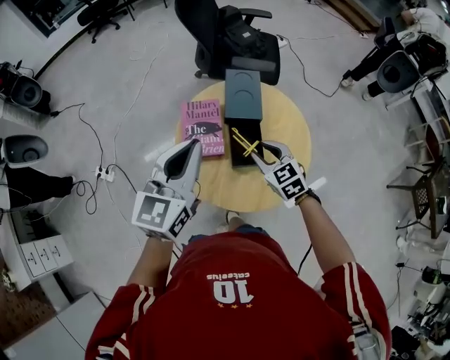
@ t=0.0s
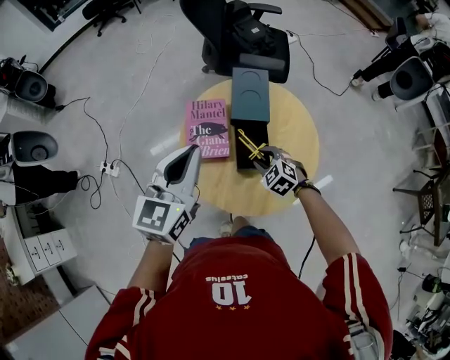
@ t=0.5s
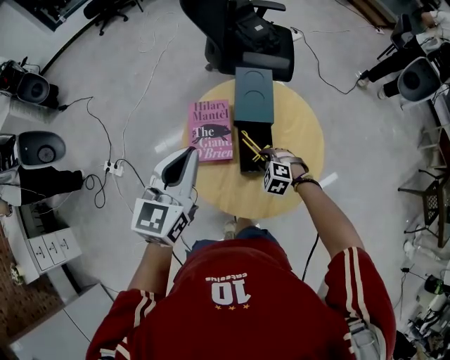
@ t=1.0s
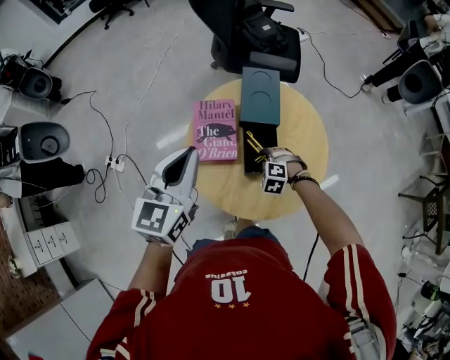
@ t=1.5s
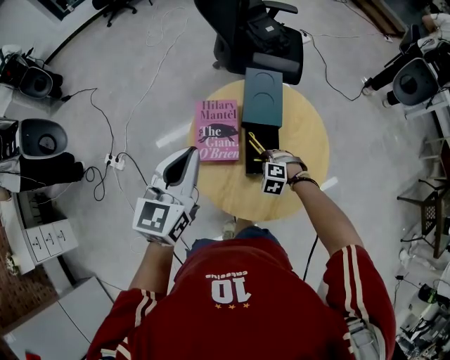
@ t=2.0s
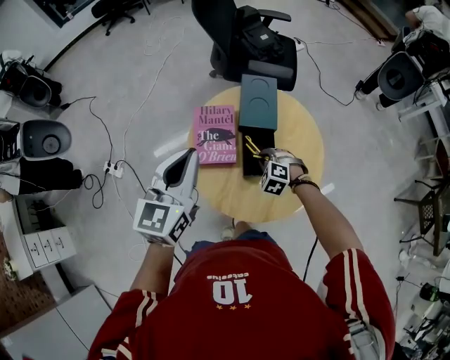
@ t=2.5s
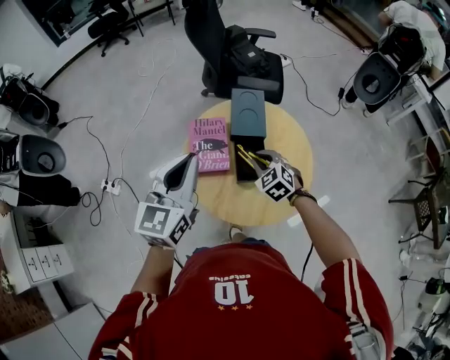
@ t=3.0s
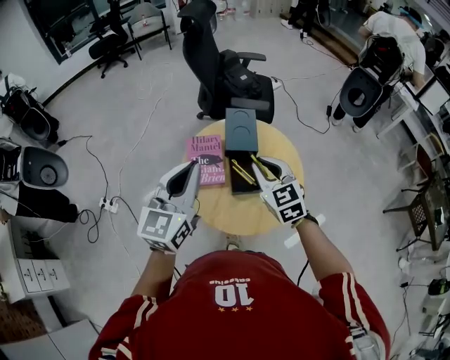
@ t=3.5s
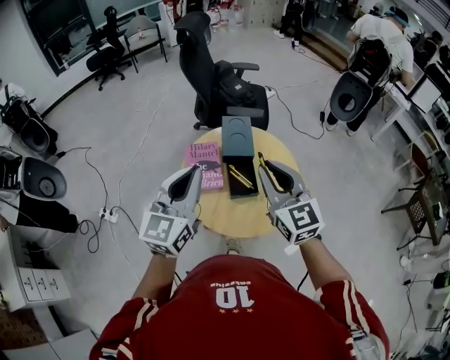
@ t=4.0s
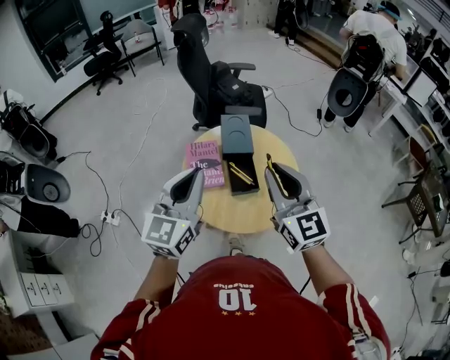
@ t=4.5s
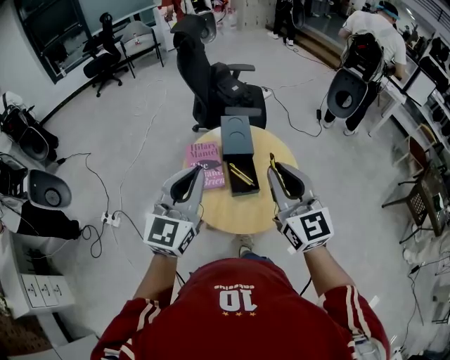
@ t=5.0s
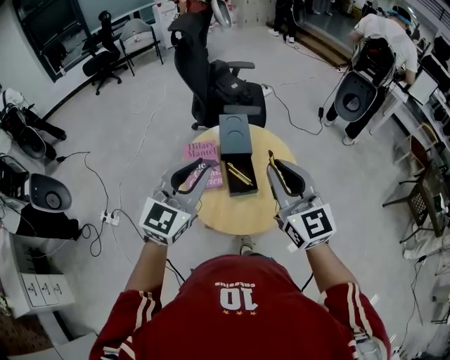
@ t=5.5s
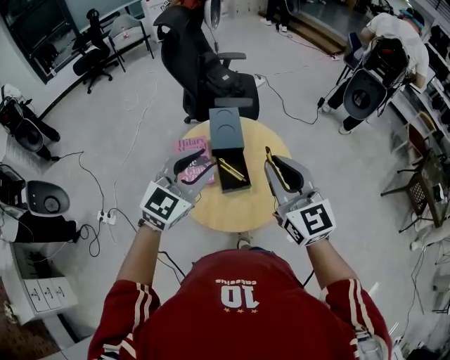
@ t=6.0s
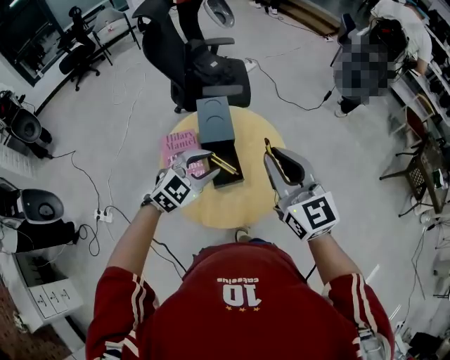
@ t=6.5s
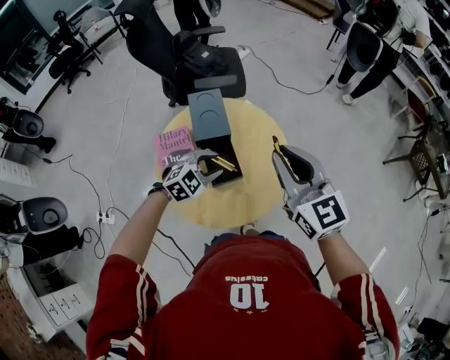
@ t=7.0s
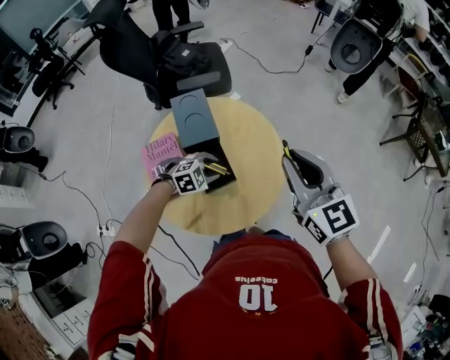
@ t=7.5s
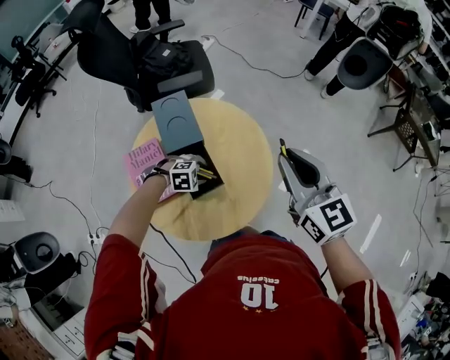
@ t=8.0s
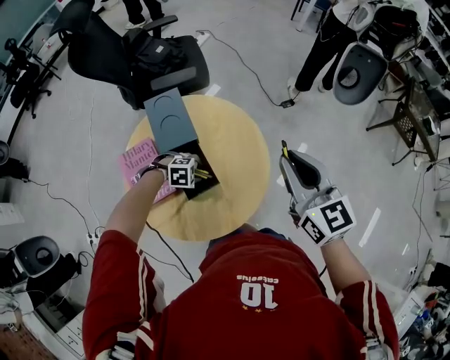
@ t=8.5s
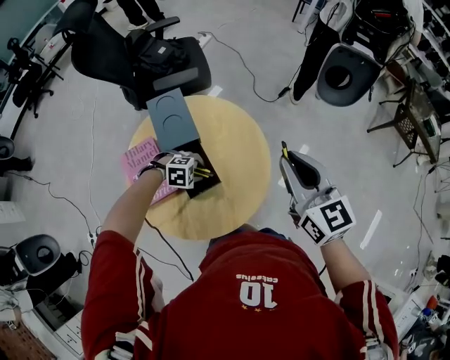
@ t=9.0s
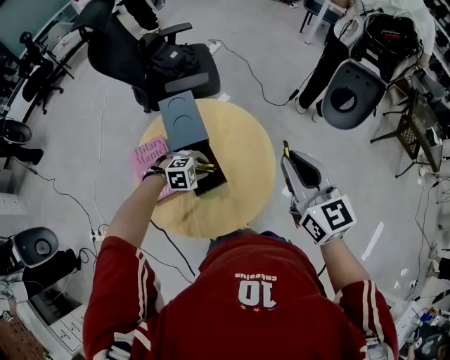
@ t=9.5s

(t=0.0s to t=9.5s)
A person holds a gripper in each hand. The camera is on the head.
t=0.0s - t=2.0s: The right gripper shifts approximately 20 cm downward, and tilts its fingers roughly 30 degrees downward. Meanwhile the left gripper moves about 5 cm.
t=2.0s - t=4.0s: The left gripper is displaced upward and backward by about 15 cm. The right gripper is displaced upward by some 40 cm, and angles its fingers upward, by about 70 degrees.
t=4.0s - t=5.5s: The right gripper ends up some 5 cm from where it was.
t=5.5s - t=7.5s: The left gripper goes some 40 cm downward, and tilts its fingers about 50 degrees downward; the right gripper moves roughly 20 cm.

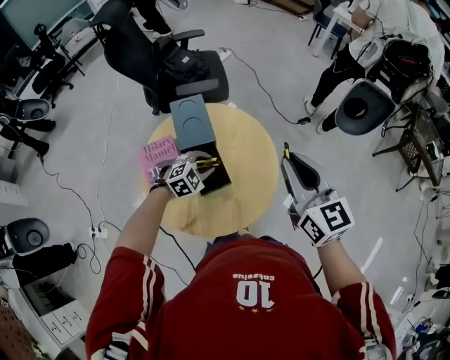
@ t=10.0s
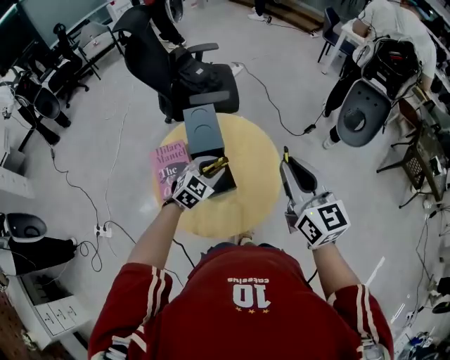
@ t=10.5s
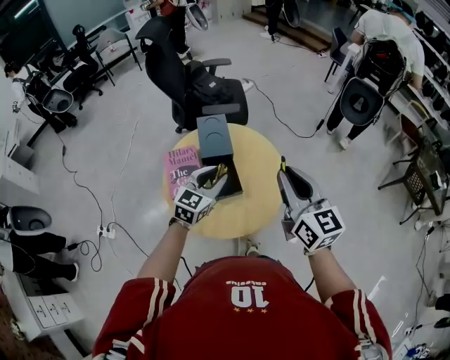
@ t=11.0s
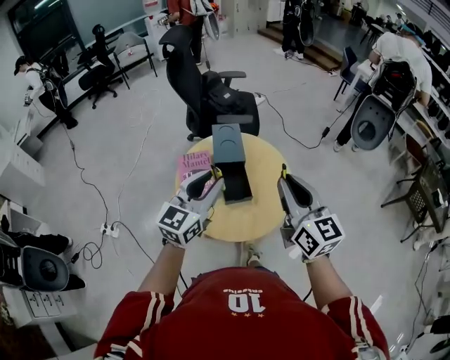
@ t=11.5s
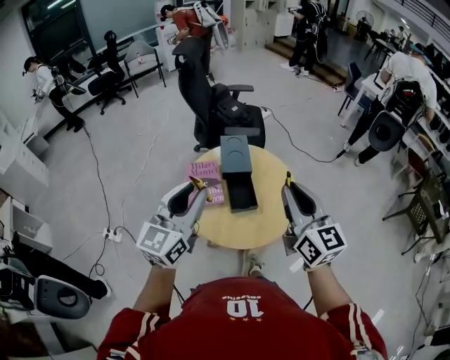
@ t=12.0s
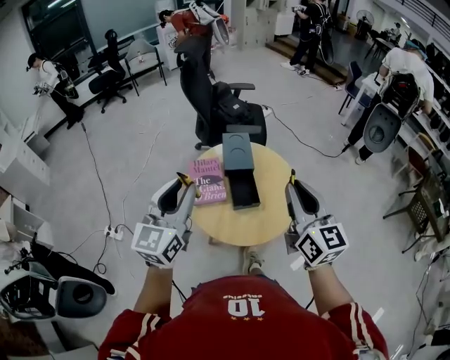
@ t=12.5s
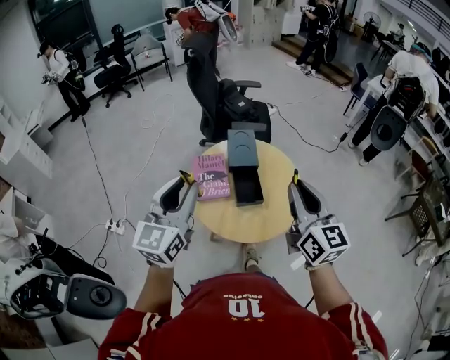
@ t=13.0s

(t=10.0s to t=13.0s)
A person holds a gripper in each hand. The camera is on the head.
t=10.0s - t=11.5s: The left gripper shifts approximately 35 cm upward and backward, and tips its fingers upward by approximately 50 degrees. The right gripper travels backward, to the left and upward by some 15 cm.
t=11.5s - t=13.0s: The left gripper travels to the left, backward and upward by some 15 cm.

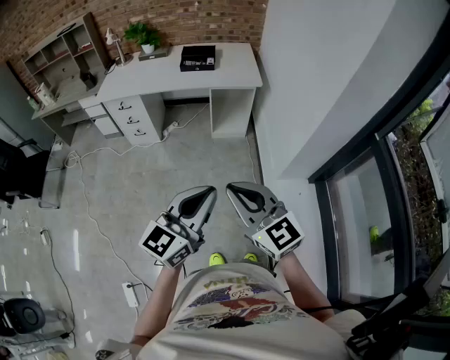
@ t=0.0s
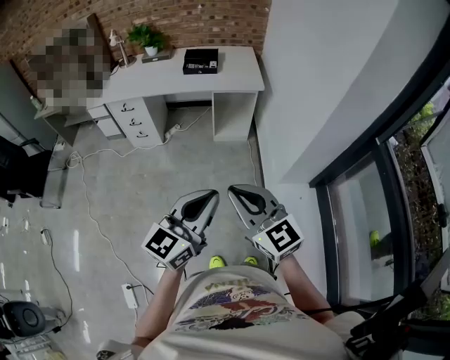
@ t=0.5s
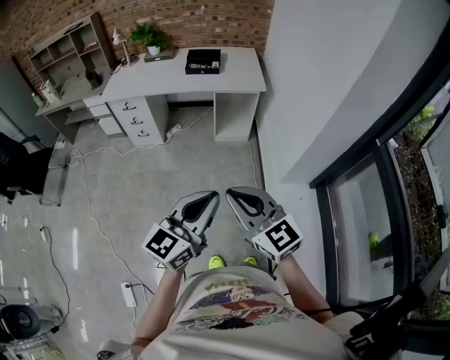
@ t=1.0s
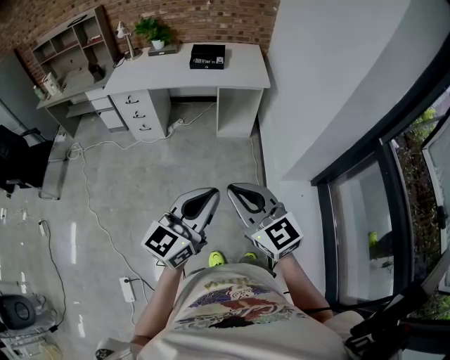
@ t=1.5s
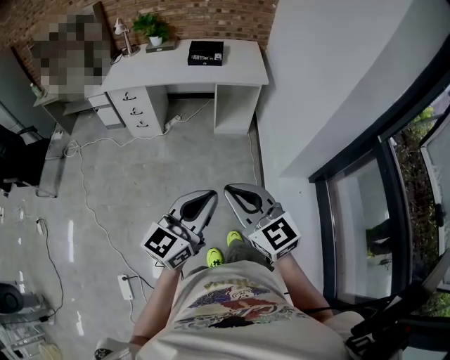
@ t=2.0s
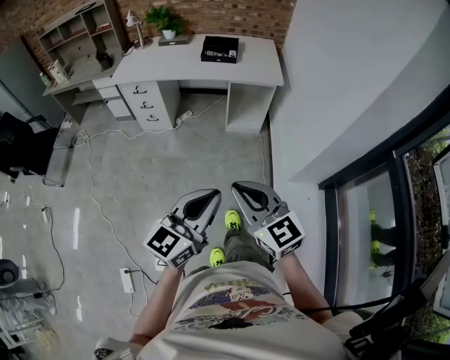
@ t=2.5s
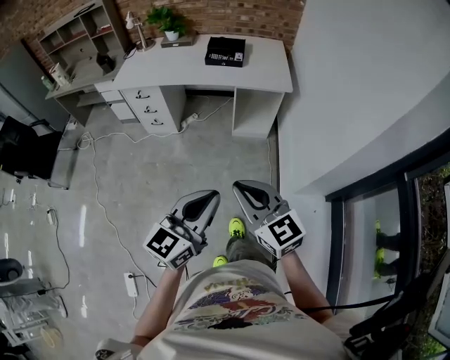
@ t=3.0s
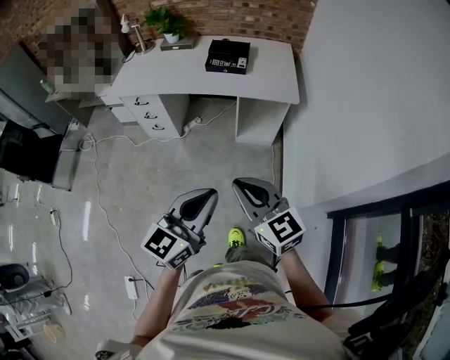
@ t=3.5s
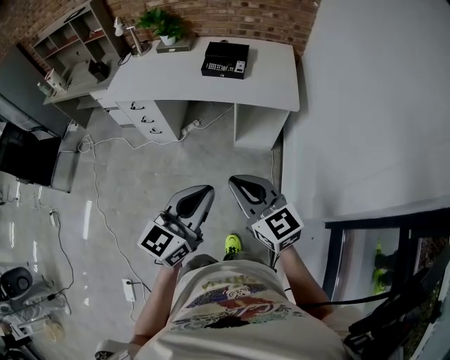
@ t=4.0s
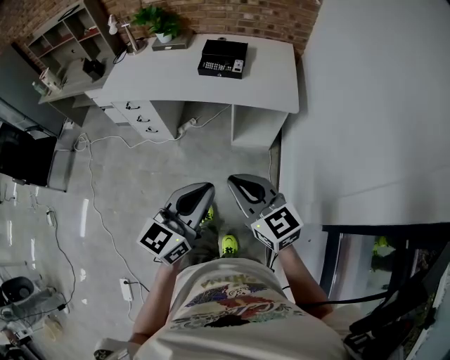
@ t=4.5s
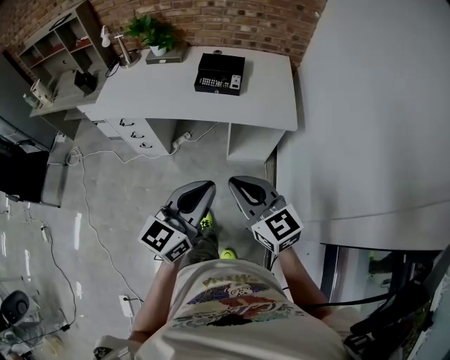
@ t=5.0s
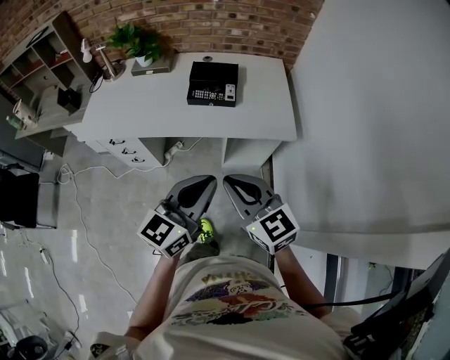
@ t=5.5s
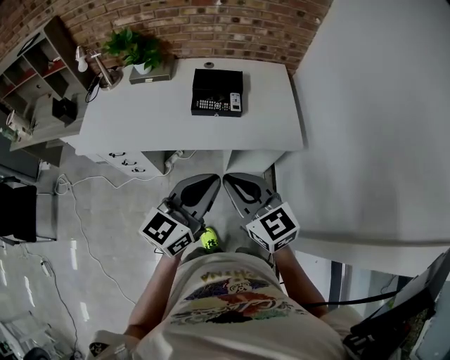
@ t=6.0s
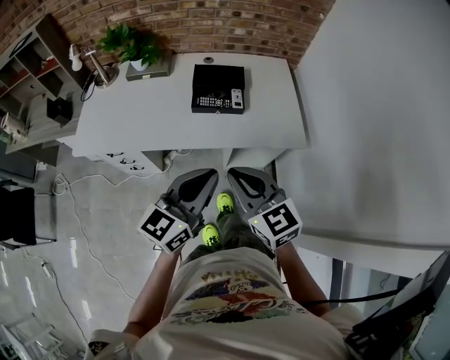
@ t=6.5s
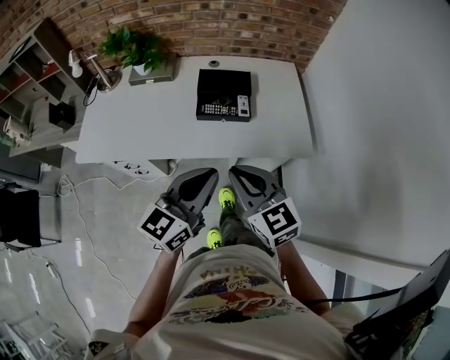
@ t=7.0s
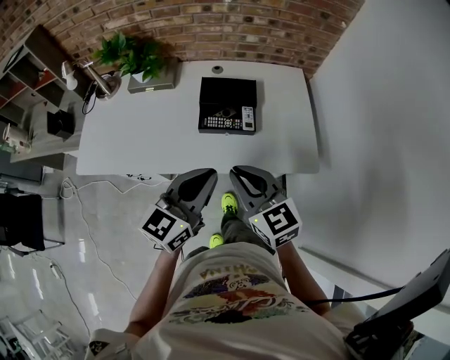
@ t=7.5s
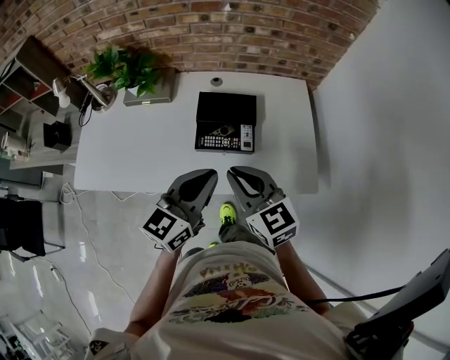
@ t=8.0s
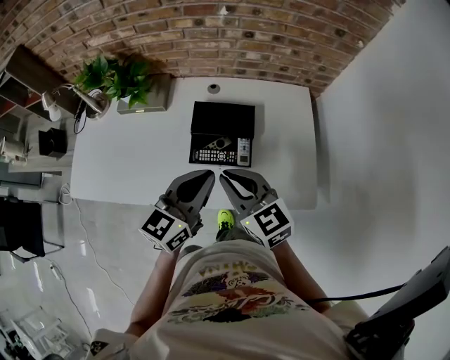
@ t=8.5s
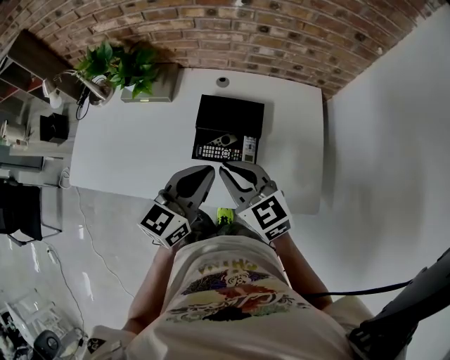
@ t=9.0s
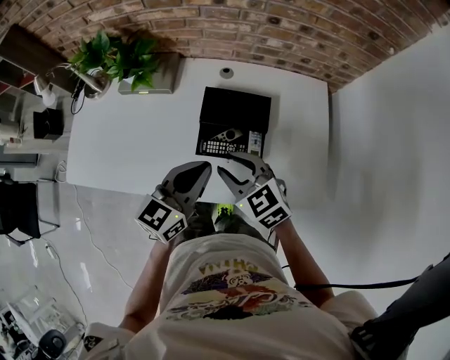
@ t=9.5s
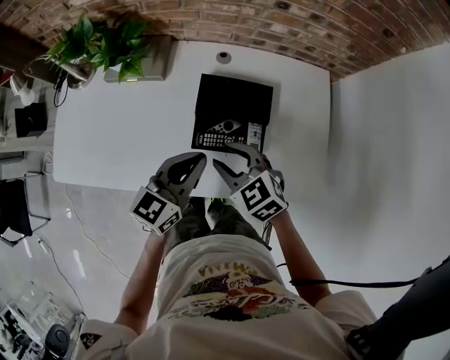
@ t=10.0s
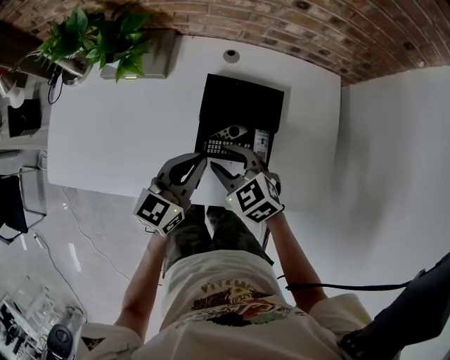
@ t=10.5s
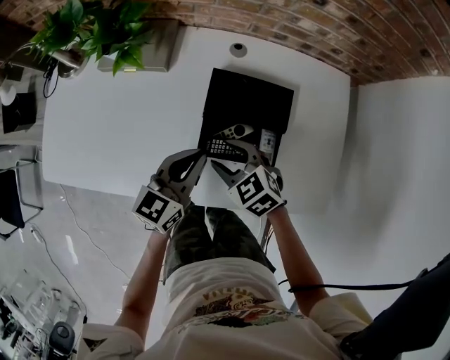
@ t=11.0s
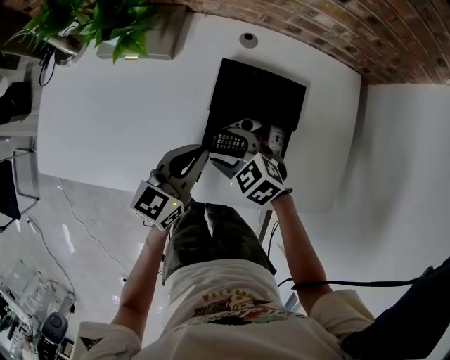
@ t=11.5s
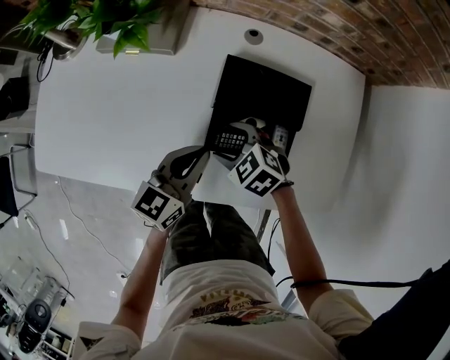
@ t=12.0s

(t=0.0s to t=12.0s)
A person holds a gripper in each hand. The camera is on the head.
t=0.0s - t=2.0s: The grippers move only a little.
t=2.0s - t=4.0s: The two grippers go some 30 cm forward.
t=4.0s - t=6.0s: Both grippers travel together forward, some 30 cm.
t=6.0s - t=8.0s: Both grippers travel together forward, approximately 25 cm.
t=8.0s - t=10.0s: Both grippers move forward and downward, approximately 15 cm. The right gripper turns by roughly 30 degrees, and opens.
t=10.0s - t=12.0s: Both grippers move downward, some 15 cm. The right gripper rotates approximately 20 degrees, and opens its fingers.

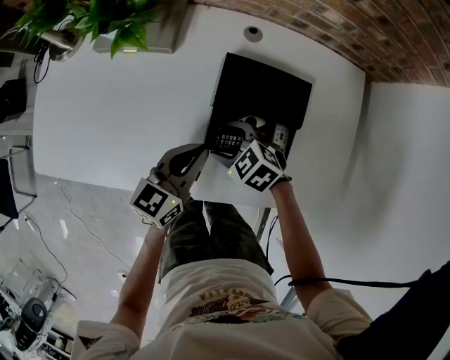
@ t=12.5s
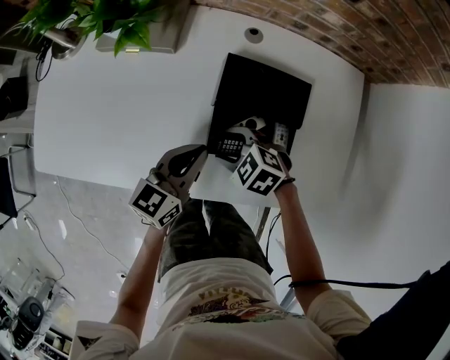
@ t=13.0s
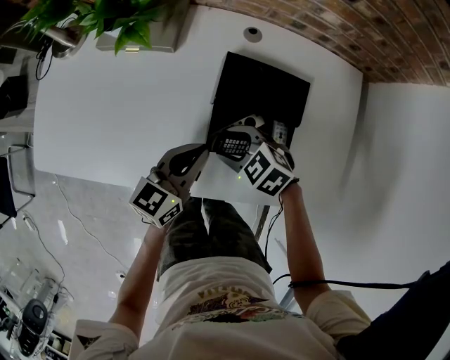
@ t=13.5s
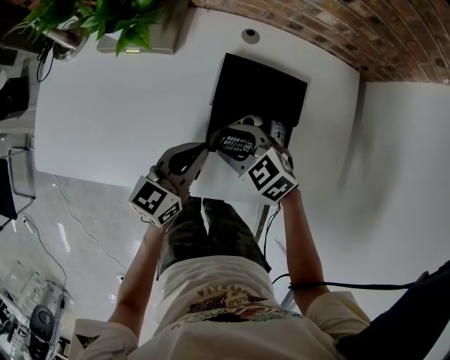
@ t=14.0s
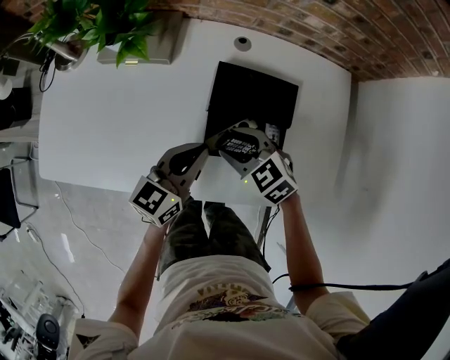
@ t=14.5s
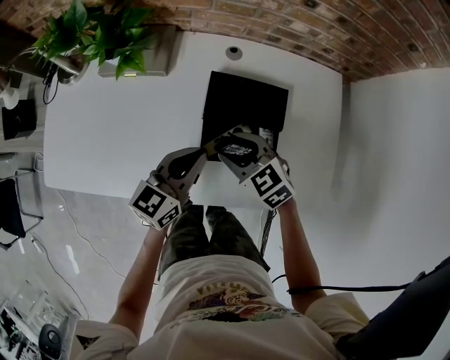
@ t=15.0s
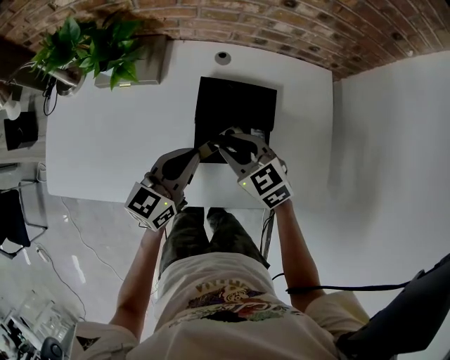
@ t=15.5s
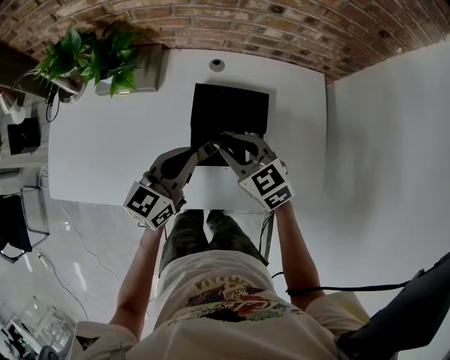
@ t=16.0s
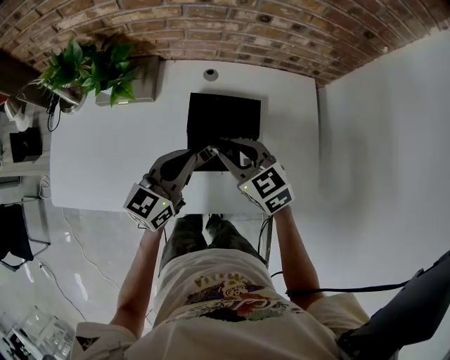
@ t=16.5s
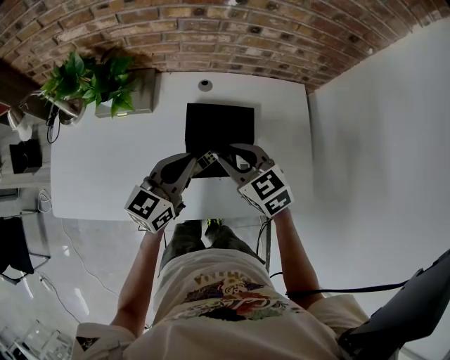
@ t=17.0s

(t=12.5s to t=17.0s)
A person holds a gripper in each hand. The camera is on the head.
t=12.5s - t=14.5s: The right gripper heads upward, covering some 10 cm.
t=14.5s - t=17.0s: The left gripper goes some 10 cm upward. The right gripper is displaced upward and to the right by approximately 15 cm, and rotates about 20 degrees.
